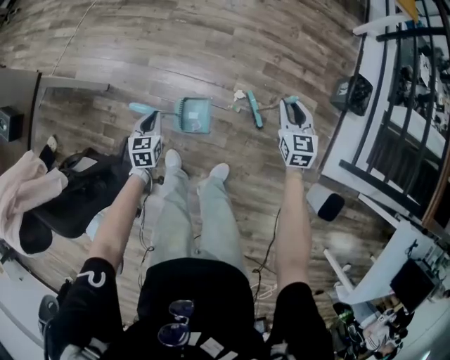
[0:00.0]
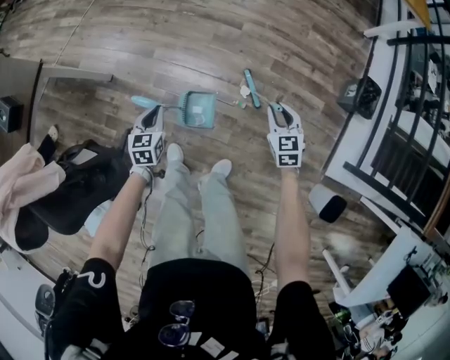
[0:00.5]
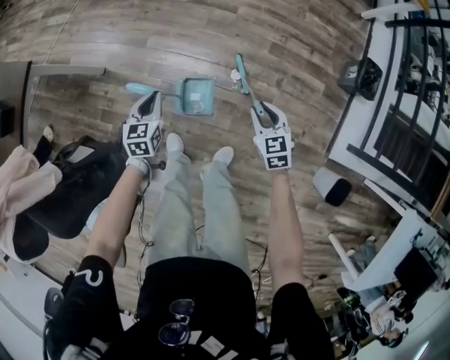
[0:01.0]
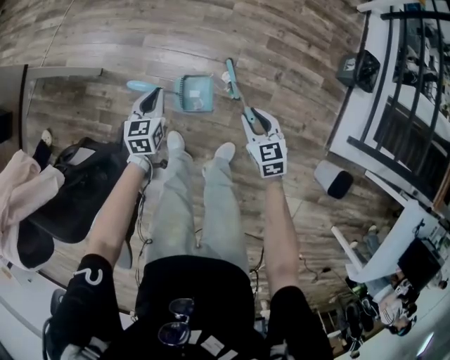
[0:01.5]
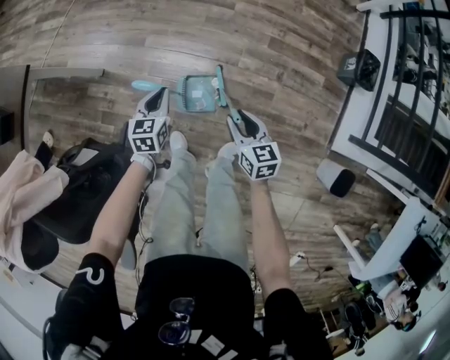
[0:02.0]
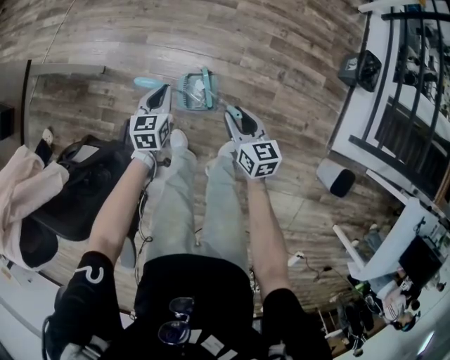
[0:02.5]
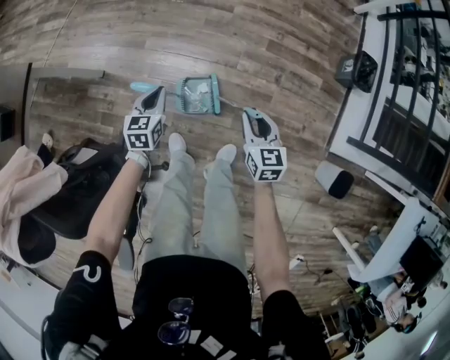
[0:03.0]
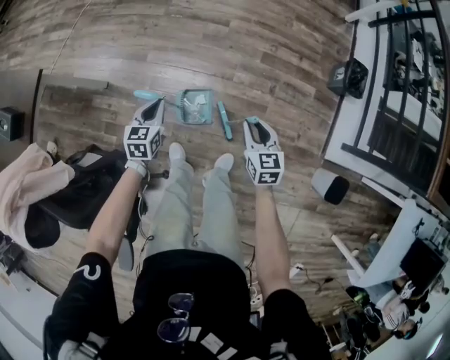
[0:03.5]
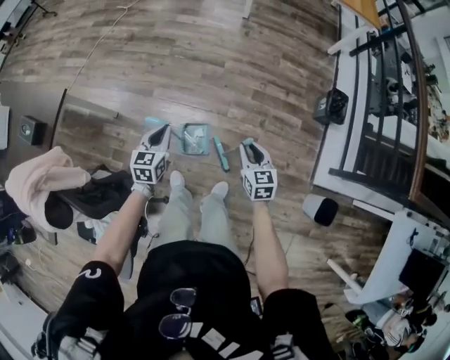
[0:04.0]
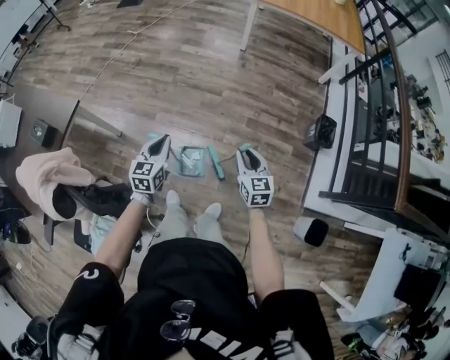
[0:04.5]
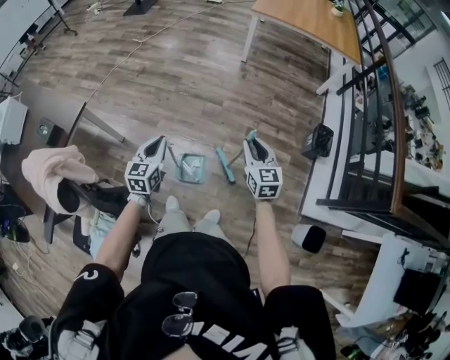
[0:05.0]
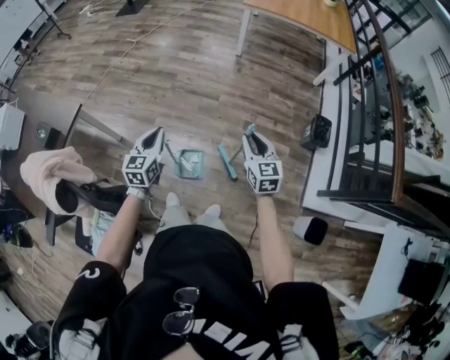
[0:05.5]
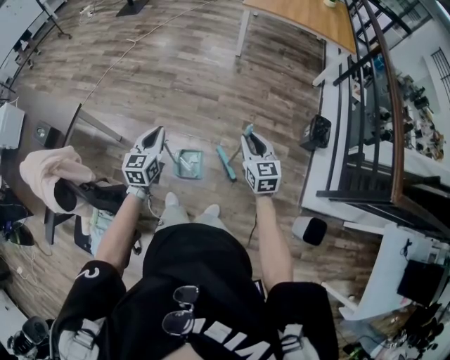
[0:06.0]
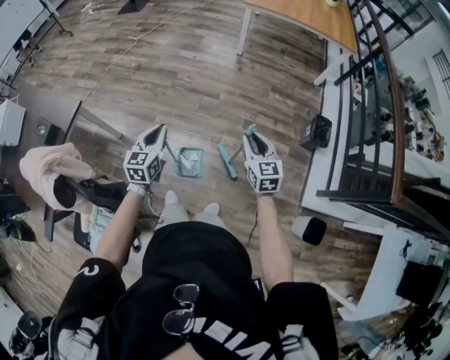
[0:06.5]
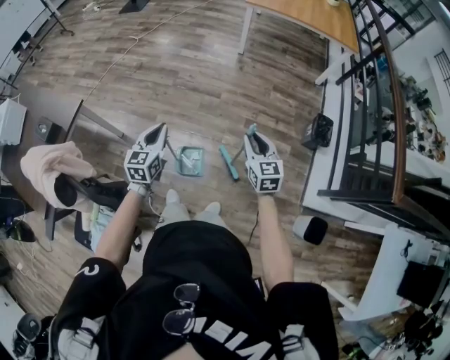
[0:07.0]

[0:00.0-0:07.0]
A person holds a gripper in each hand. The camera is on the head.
0:00.0 to 0:02.0: The right gripper travels to the left and backward by approximately 25 cm, and changes its angle by approximately 20 degrees.
0:02.0 to 0:03.5: The right gripper travels to the right and upward by approximately 10 cm. Meanwhile the left gripper goes approximately 5 cm upward.
0:03.5 to 0:05.0: Both grippers move upward, about 30 cm.
0:05.0 to 0:07.0: The grippers make only small movements.

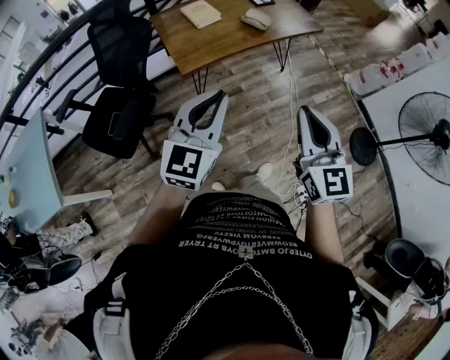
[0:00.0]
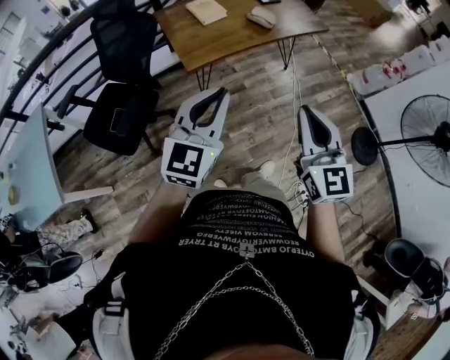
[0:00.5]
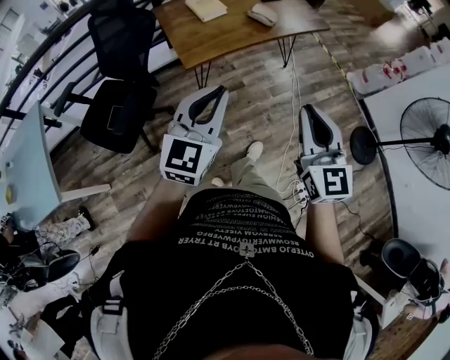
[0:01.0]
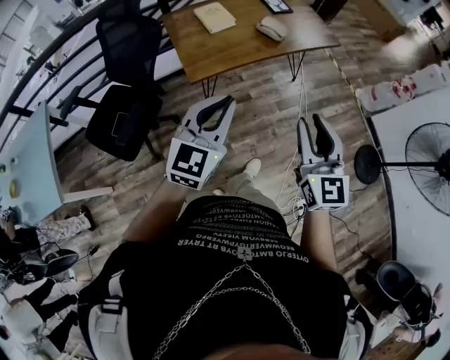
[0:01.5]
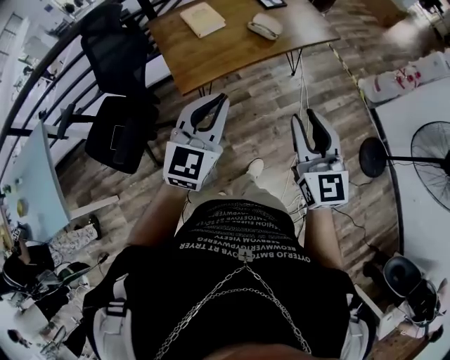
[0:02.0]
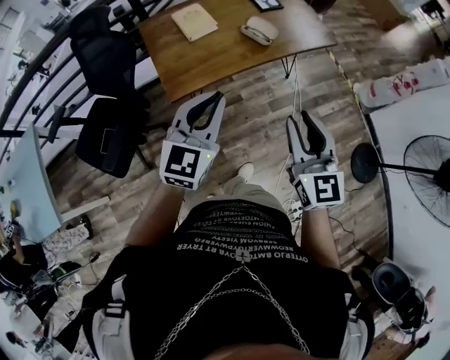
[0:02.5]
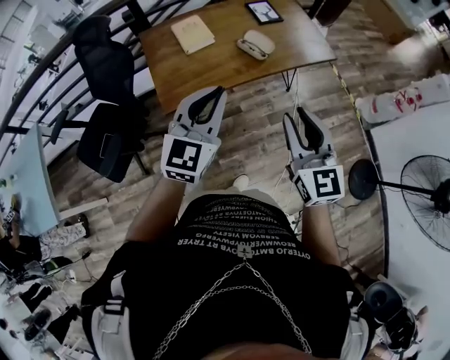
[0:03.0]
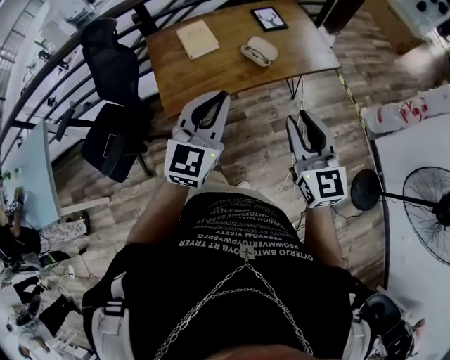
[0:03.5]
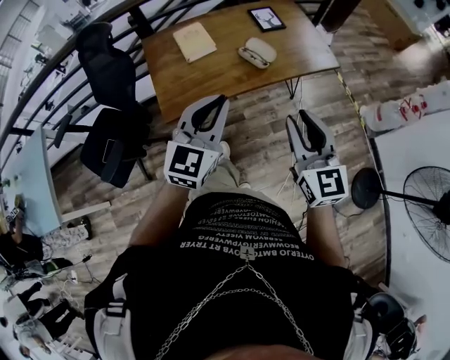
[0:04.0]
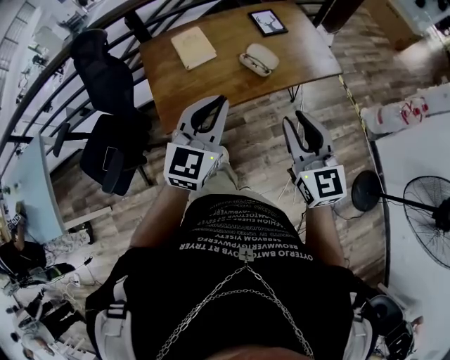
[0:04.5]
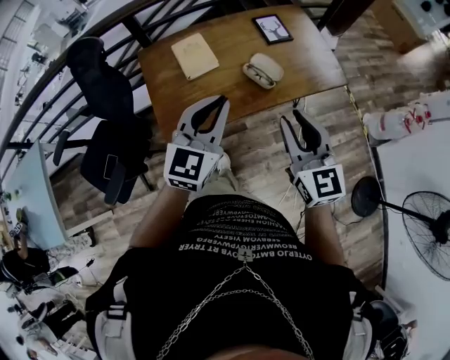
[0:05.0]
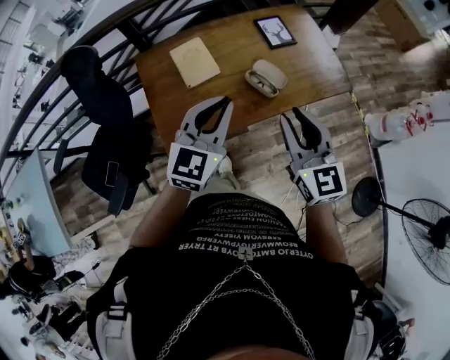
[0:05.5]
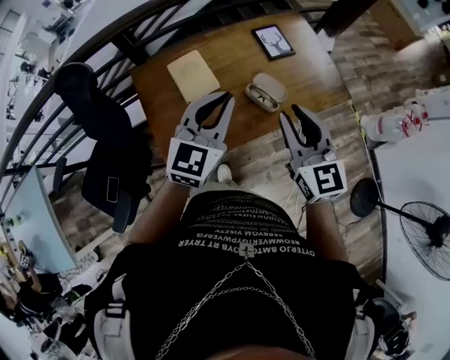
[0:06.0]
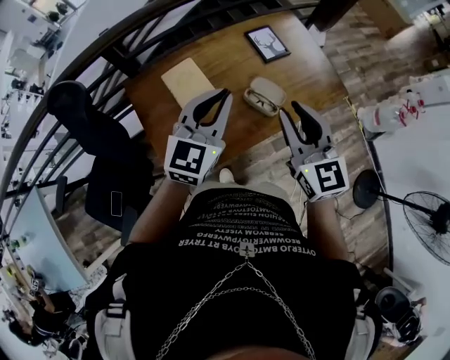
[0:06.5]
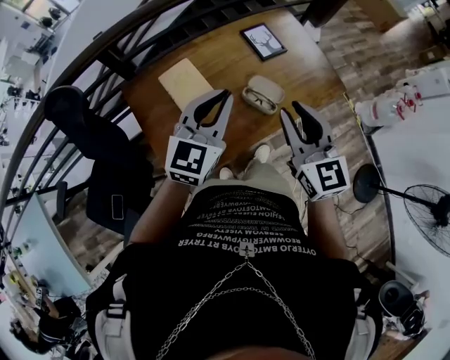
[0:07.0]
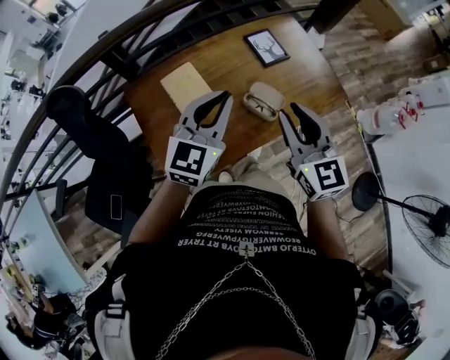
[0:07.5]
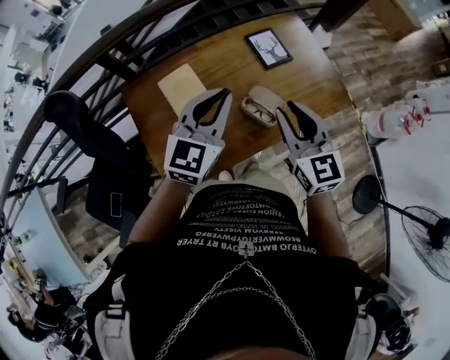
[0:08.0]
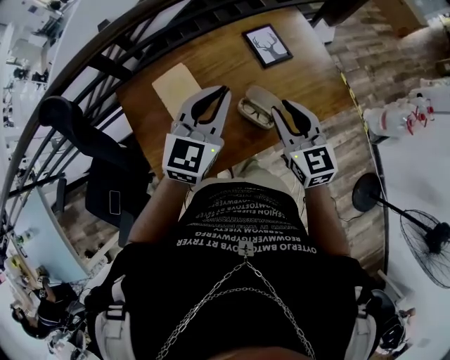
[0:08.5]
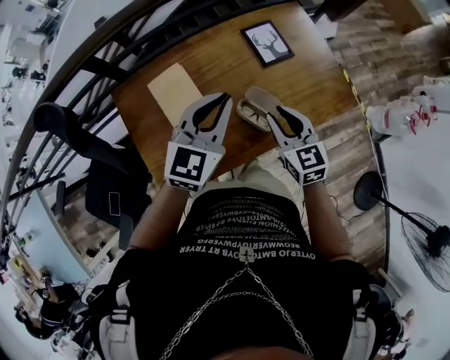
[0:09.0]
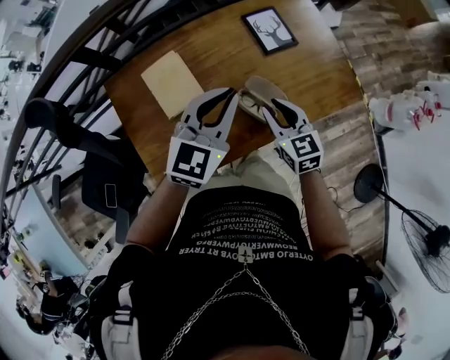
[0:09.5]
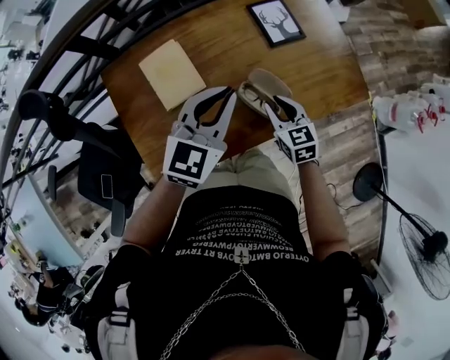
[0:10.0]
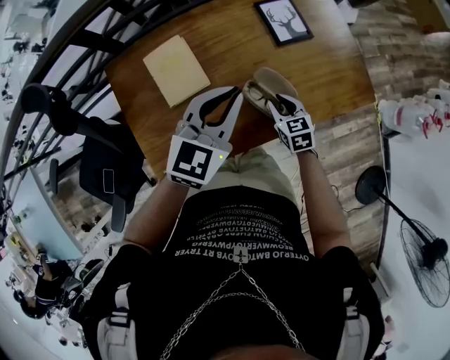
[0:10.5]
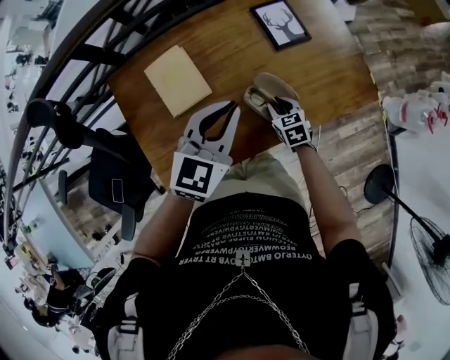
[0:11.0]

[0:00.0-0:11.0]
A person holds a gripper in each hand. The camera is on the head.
0:00.0 to 0:02.0: Both grippers travel together forward, approximately 15 cm. The right gripper opens up.
0:02.0 to 0:03.5: The grippers both shift forward and to the right by some 15 cm.
0:03.5 to 0:05.5: The two grippers go roughly 20 cm forward.
0:05.5 to 0:07.5: The grippers both shift forward by approximately 10 cm.
0:07.5 to 0:09.0: The right gripper moves downward and forward, about 20 cm. The left gripper shifts about 10 cm forward and downward.
0:09.0 to 0:11.0: The right gripper travels downward by approximately 25 cm, and changes its angle by approximately 20 degrees. The left gripper shifts roughly 10 cm downward.

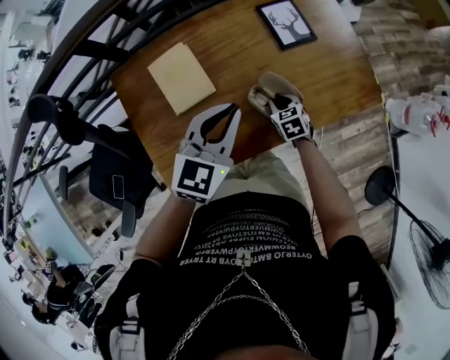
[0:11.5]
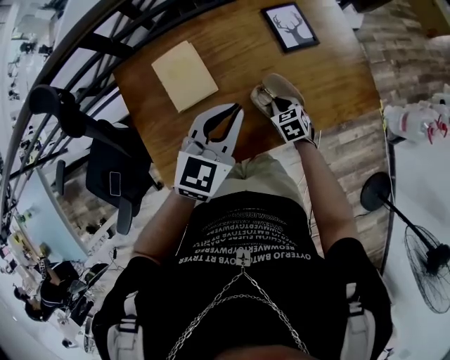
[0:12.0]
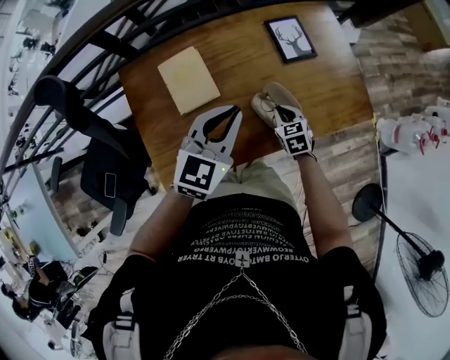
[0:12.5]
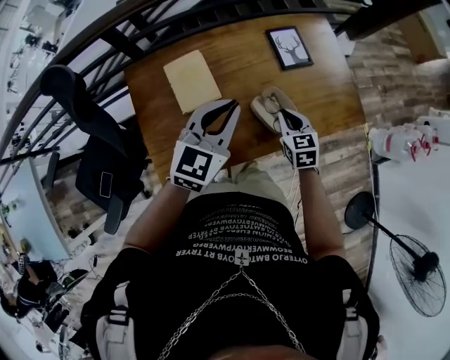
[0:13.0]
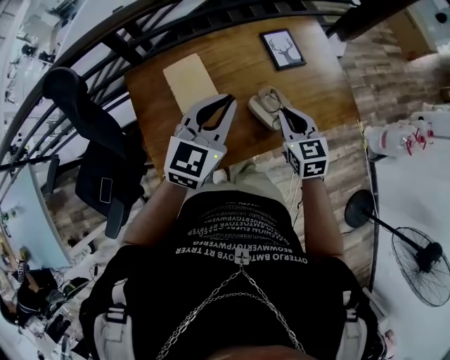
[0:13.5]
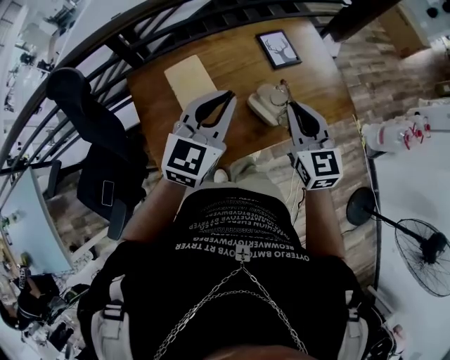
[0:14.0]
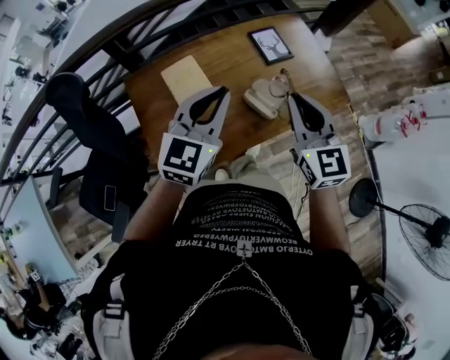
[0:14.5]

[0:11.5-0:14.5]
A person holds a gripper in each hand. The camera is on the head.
0:11.5 to 0:13.0: The right gripper heads upward, covering some 15 cm, while the left gripper shifts roughly 5 cm upward.
0:13.0 to 0:14.5: The left gripper goes roughly 10 cm upward and backward. The right gripper heads upward, covering about 25 cm, and rotates some 30 degrees.

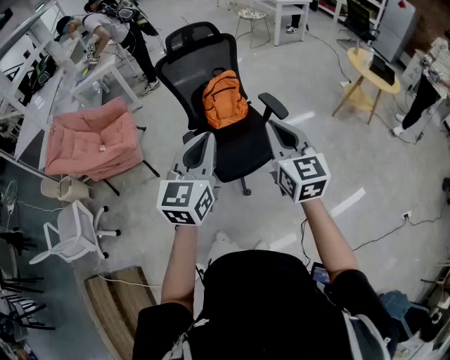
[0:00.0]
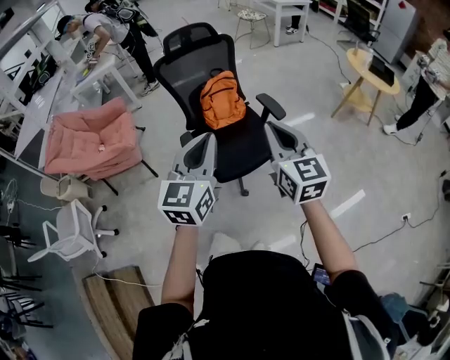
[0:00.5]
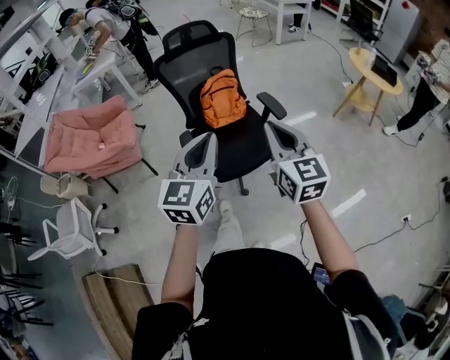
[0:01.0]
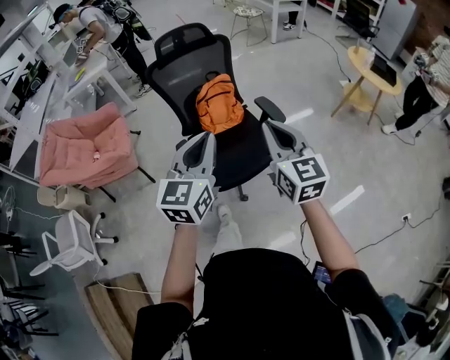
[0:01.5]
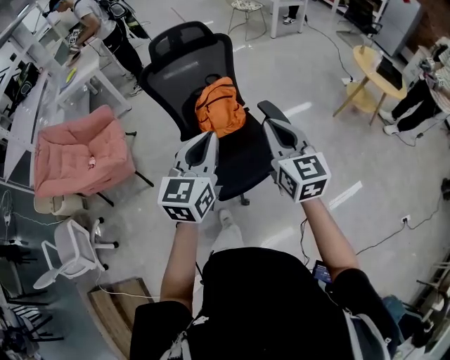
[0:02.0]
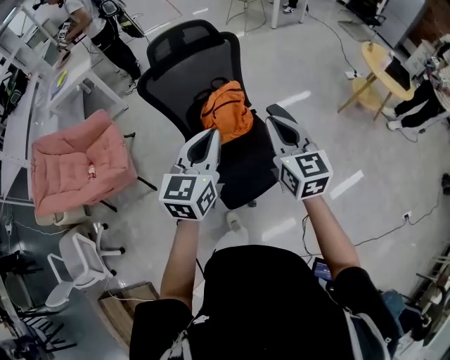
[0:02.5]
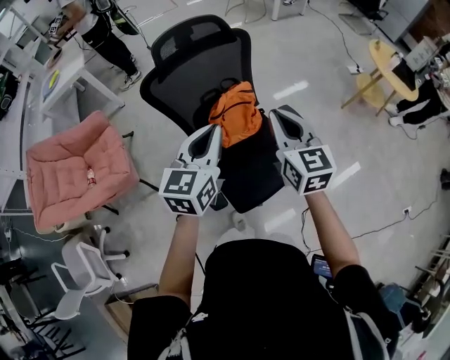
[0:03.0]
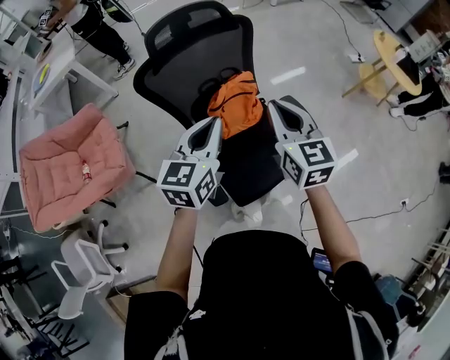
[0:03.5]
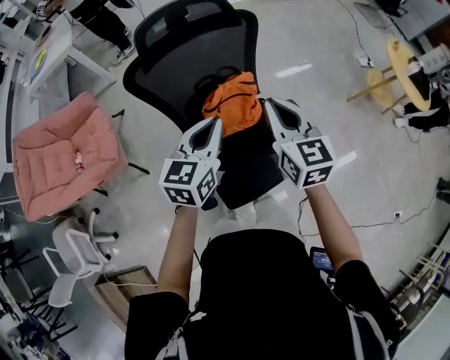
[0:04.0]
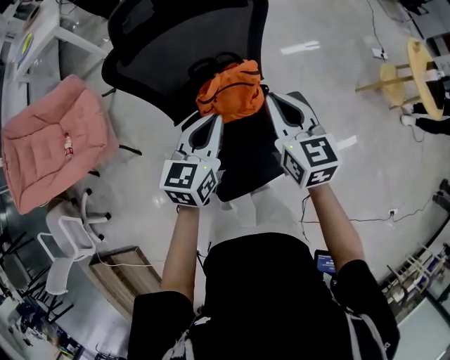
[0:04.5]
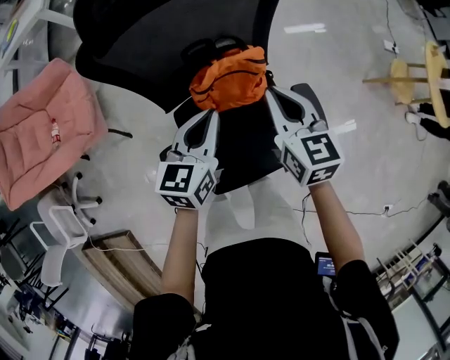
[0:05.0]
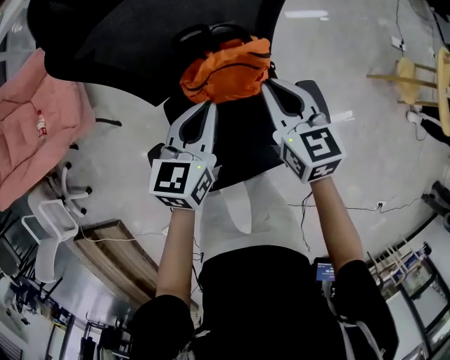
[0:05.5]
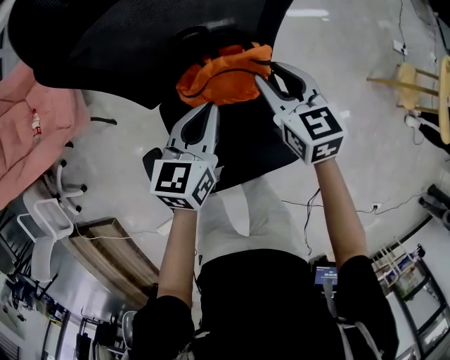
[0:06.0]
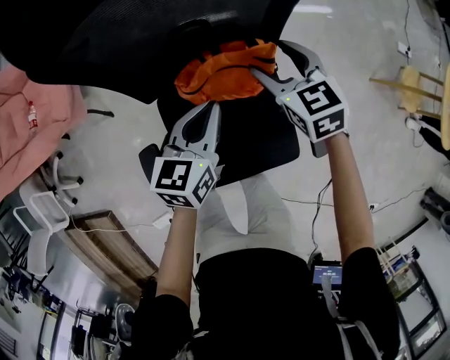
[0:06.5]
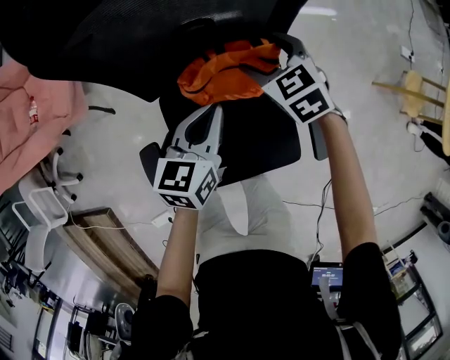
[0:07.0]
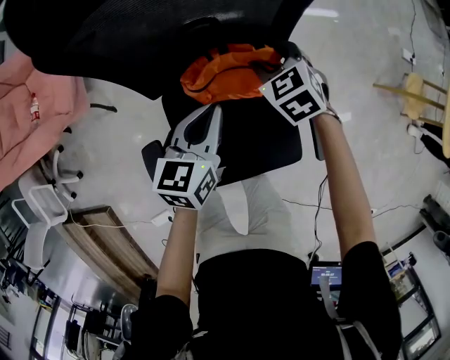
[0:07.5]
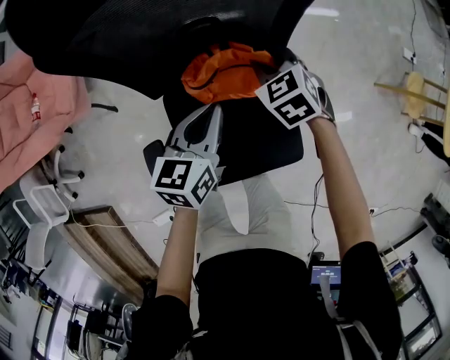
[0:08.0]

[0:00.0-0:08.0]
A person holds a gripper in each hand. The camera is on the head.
0:00.0 to 0:02.0: The two grippers go roughly 20 cm forward.
0:02.0 to 0:04.0: The left gripper shifts about 30 cm forward and downward; the right gripper is displaced forward and to the left by about 30 cm.
0:04.0 to 0:06.0: The grippers both shift downward and forward by some 30 cm. The right gripper swivels roughly 30 degrees, and opens. Meanwhile the left gripper turns by roughly 20 degrees.
0:06.0 to 0:08.0: The right gripper heads downward, covering approximately 10 cm, changes its angle by roughly 30 degrees, and opens, then closes again.
